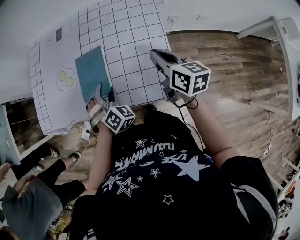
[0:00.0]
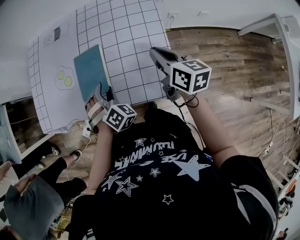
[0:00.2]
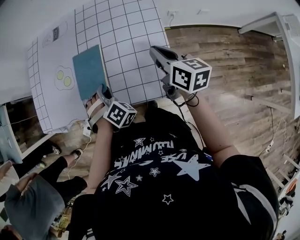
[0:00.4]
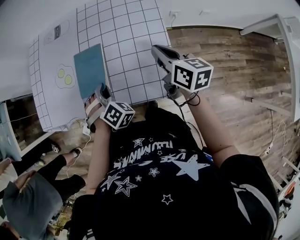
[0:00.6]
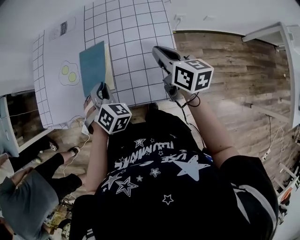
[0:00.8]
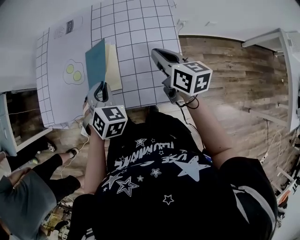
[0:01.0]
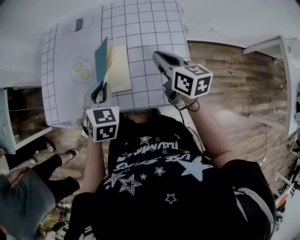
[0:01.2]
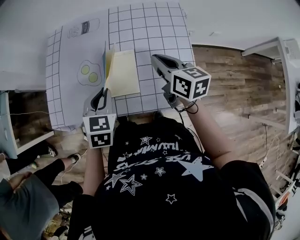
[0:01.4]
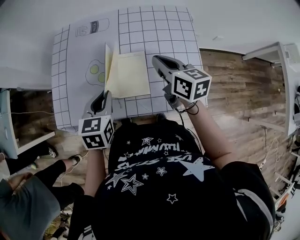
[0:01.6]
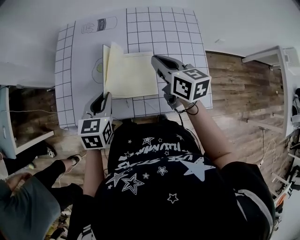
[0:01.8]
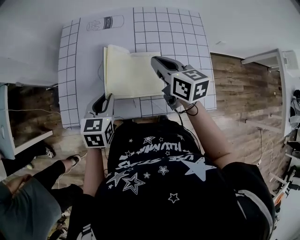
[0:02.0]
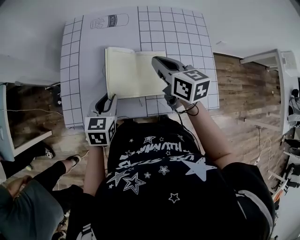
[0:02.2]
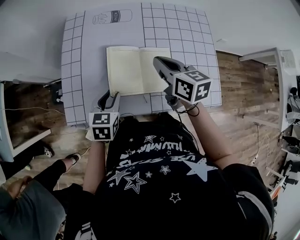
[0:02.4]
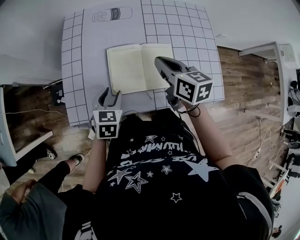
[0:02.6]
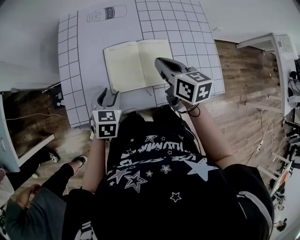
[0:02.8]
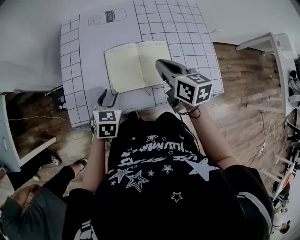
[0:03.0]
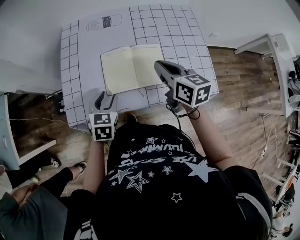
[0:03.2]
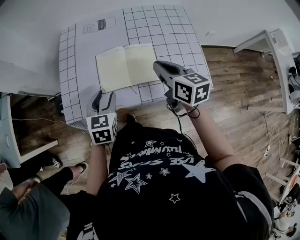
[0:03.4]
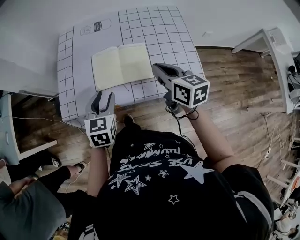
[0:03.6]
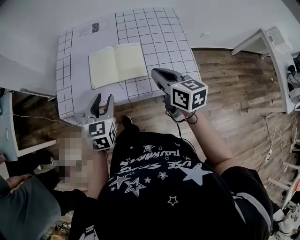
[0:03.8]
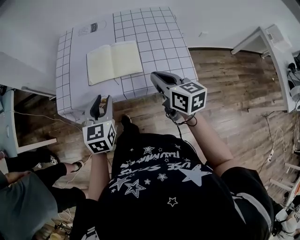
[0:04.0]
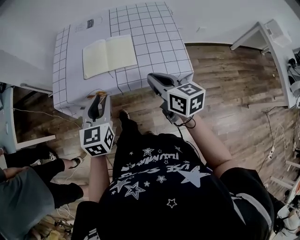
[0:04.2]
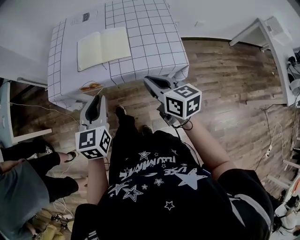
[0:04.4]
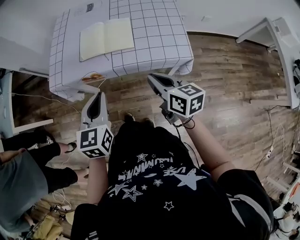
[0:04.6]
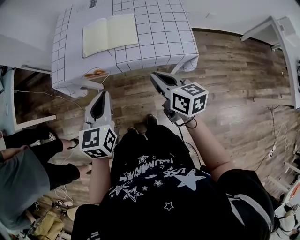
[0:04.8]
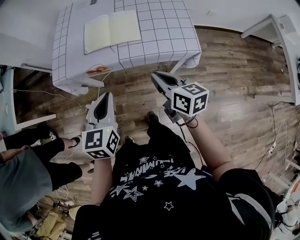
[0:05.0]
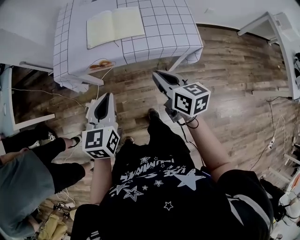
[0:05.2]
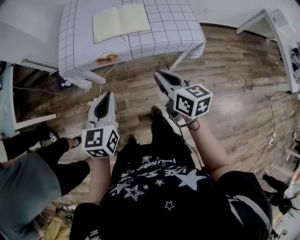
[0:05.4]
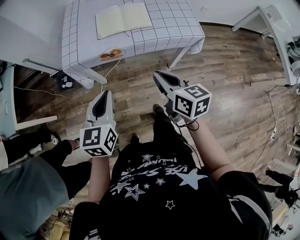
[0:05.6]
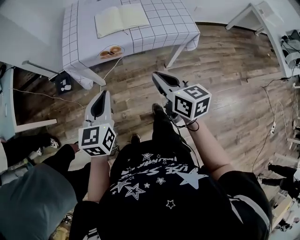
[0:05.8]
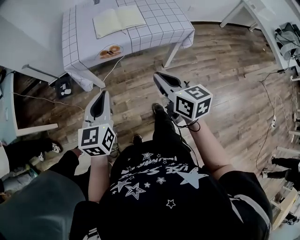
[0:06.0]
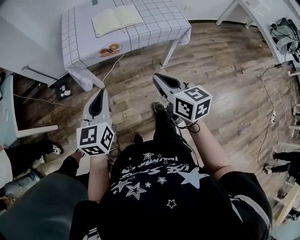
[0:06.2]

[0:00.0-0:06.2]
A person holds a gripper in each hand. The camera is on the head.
0:00.0 to 0:01.6: The left gripper shifts some 20 cm to the left, upward and forward, rolls counterclockwise, seen from behind, by approximately 50 degrees, and closes its fingers, while the right gripper shifts approximately 15 cm to the left and forward.
0:01.6 to 0:03.2: The left gripper is displaced to the left and downward by roughly 15 cm, and opens its fingers. The right gripper shifts approximately 10 cm to the left and backward.
0:03.2 to 0:04.6: The left gripper is displaced backward, upward and to the right by about 30 cm, changes its angle by some 20 degrees, and closes its fingers. Meanwhile the right gripper moves backward, approximately 25 cm.
0:04.6 to 0:06.2: The right gripper moves backward and to the left, approximately 25 cm; the left gripper is displaced to the left and backward by roughly 25 cm.

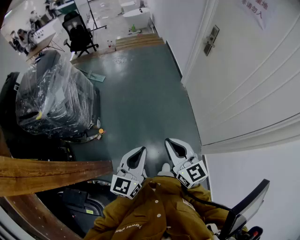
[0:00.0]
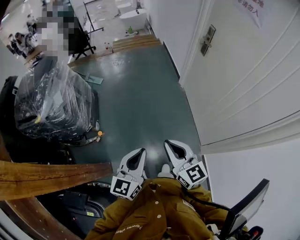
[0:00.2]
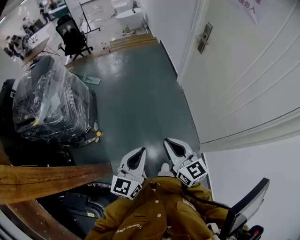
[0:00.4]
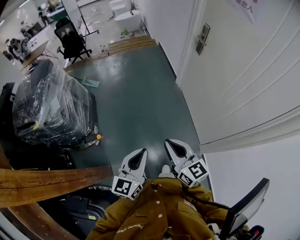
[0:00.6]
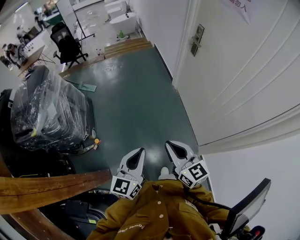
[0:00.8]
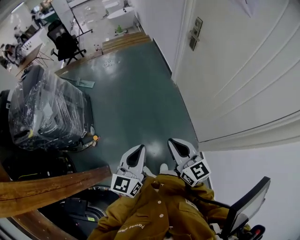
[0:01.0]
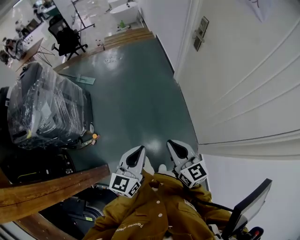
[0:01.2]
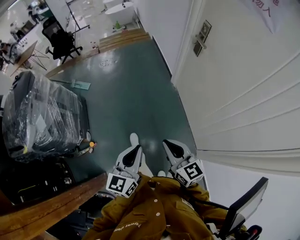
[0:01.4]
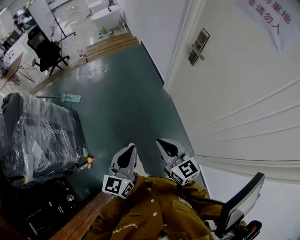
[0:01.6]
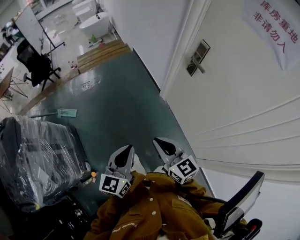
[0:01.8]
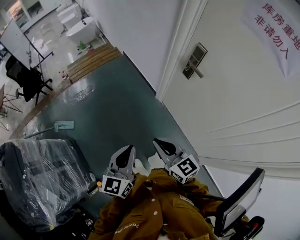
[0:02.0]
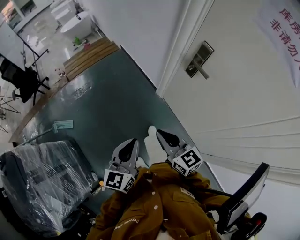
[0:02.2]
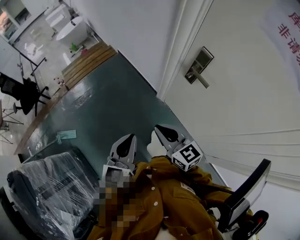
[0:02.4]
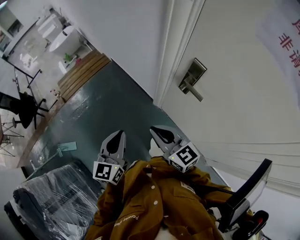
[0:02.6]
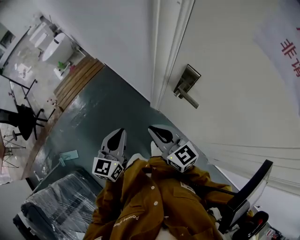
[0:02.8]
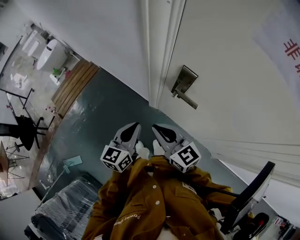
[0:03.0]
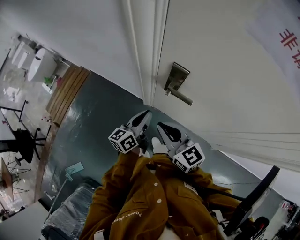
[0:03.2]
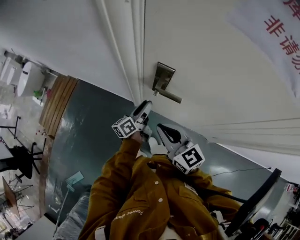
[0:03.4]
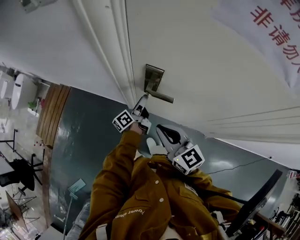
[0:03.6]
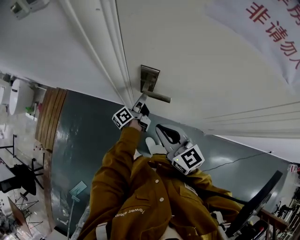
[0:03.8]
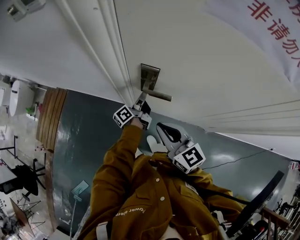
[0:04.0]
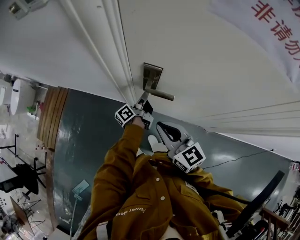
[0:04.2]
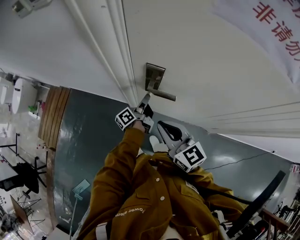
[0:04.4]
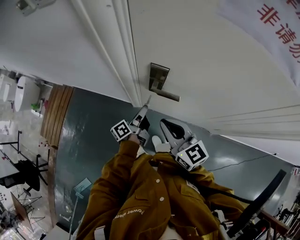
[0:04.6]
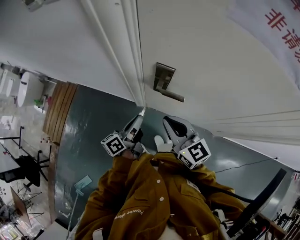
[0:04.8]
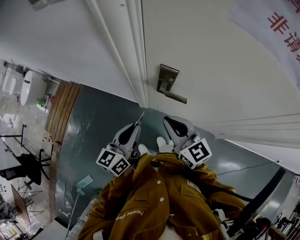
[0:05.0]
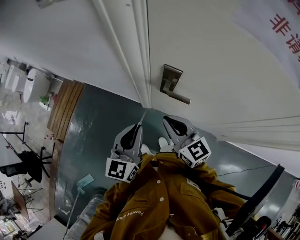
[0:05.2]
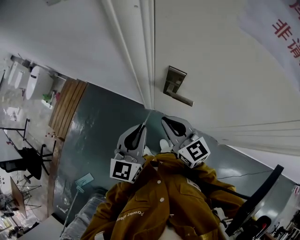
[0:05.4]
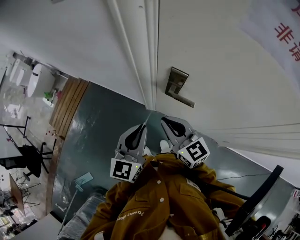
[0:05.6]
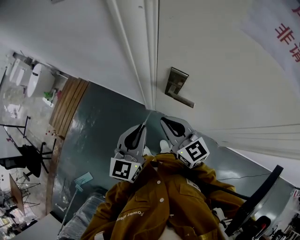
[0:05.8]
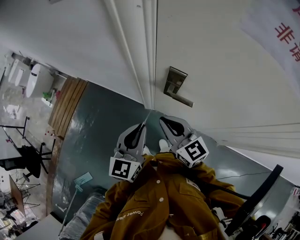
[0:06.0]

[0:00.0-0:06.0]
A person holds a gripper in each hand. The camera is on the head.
0:00.0 to 0:01.6: The two grippers go approximately 30 cm forward.
0:01.6 to 0:03.0: The pair of grippers is taken about 50 cm. The right gripper swivels about 20 degrees; the left gripper swivels approximately 40 degrees.
0:03.0 to 0:04.4: The right gripper shifts approximately 10 cm to the right, and changes its angle by about 20 degrees. The left gripper goes roughly 25 cm forward, to the right and downward, twists about 60 degrees counterclockwise, seen from behind, and opens and closes again.
0:04.4 to 0:06.0: The right gripper shifts by approximately 5 cm. The left gripper travels upward, backward and to the left by approximately 25 cm, and twists approximately 80 degrees clockwise, seen from behind.

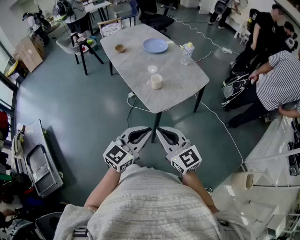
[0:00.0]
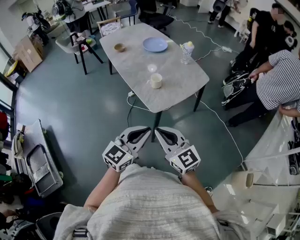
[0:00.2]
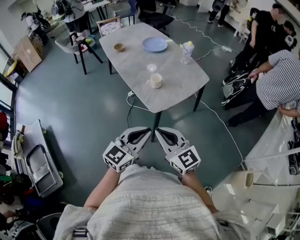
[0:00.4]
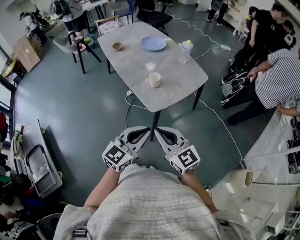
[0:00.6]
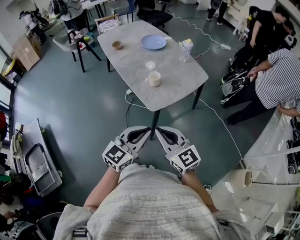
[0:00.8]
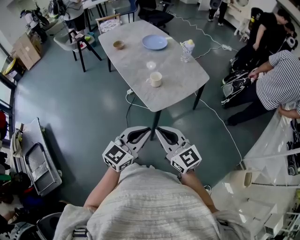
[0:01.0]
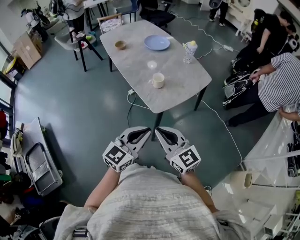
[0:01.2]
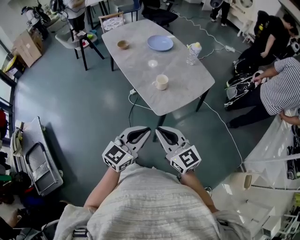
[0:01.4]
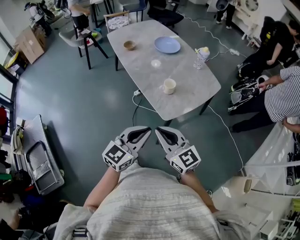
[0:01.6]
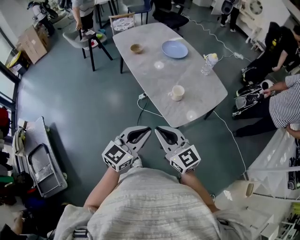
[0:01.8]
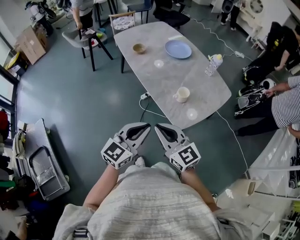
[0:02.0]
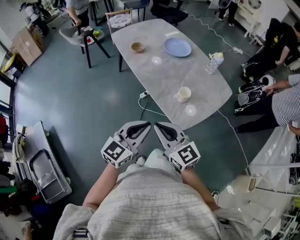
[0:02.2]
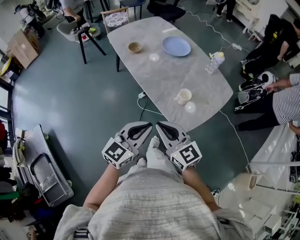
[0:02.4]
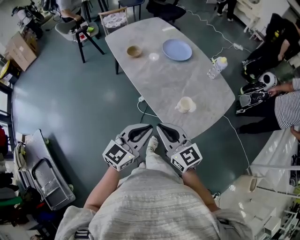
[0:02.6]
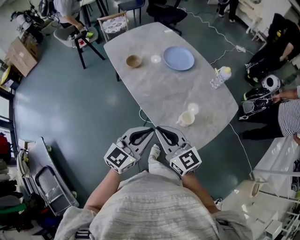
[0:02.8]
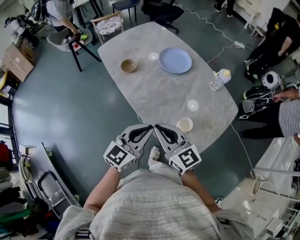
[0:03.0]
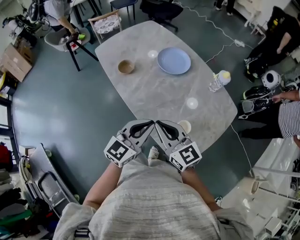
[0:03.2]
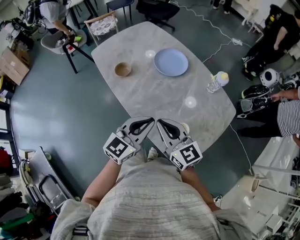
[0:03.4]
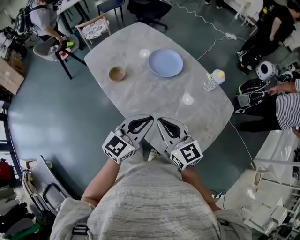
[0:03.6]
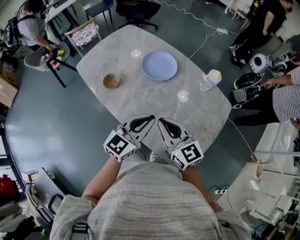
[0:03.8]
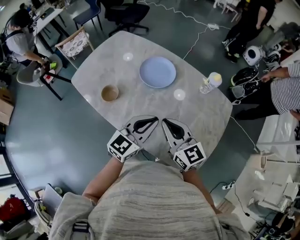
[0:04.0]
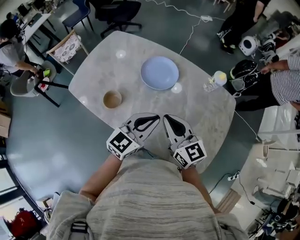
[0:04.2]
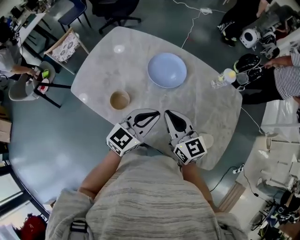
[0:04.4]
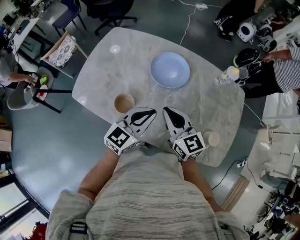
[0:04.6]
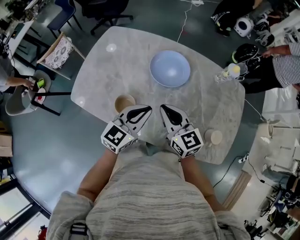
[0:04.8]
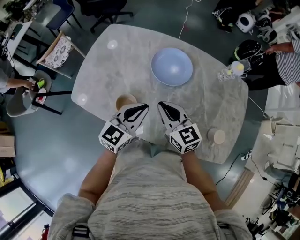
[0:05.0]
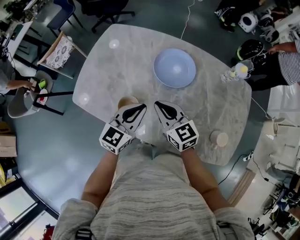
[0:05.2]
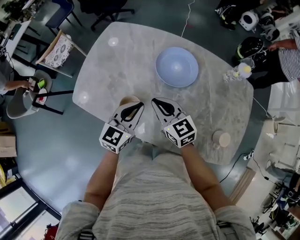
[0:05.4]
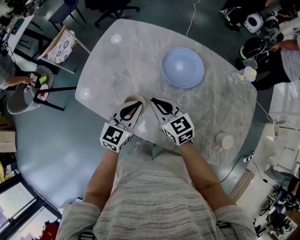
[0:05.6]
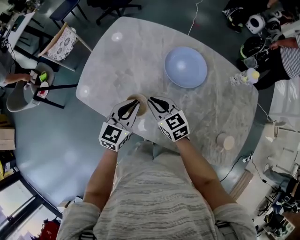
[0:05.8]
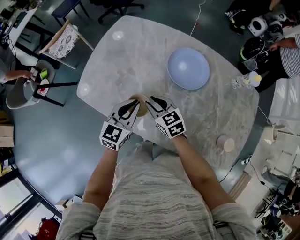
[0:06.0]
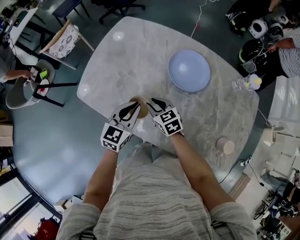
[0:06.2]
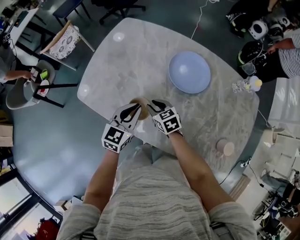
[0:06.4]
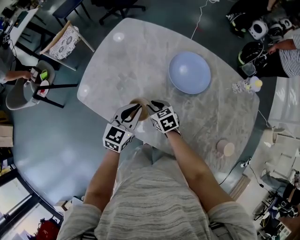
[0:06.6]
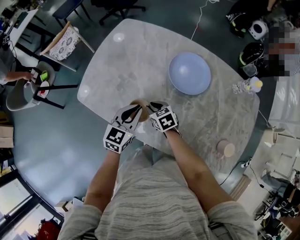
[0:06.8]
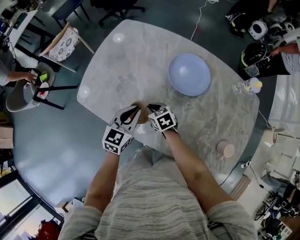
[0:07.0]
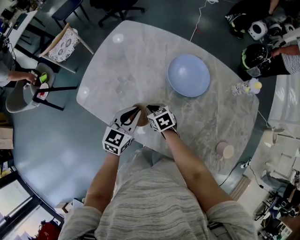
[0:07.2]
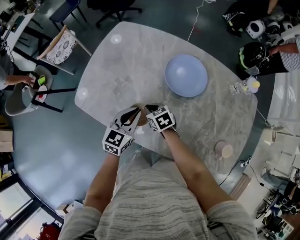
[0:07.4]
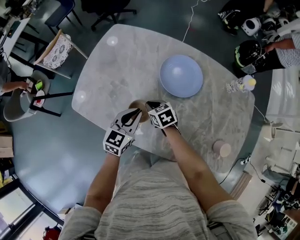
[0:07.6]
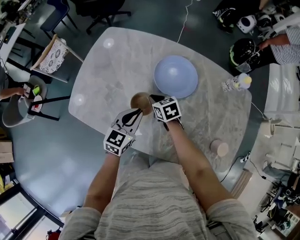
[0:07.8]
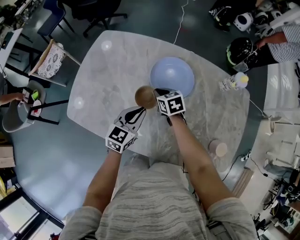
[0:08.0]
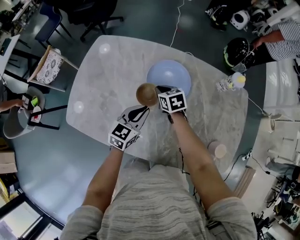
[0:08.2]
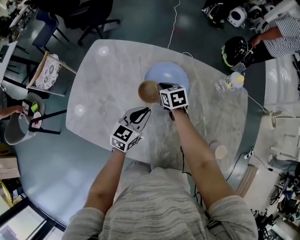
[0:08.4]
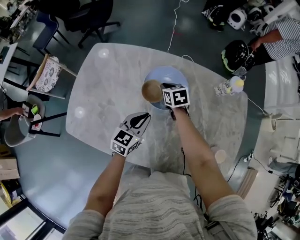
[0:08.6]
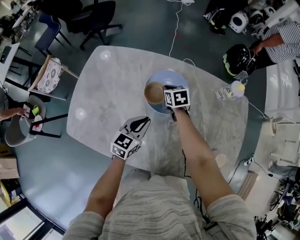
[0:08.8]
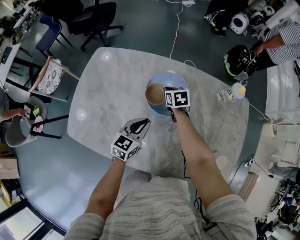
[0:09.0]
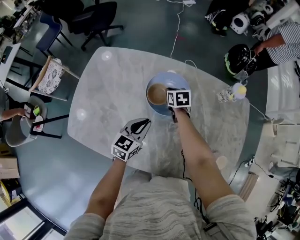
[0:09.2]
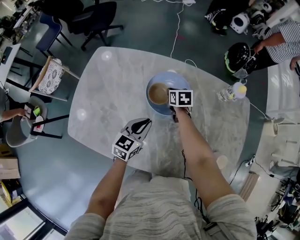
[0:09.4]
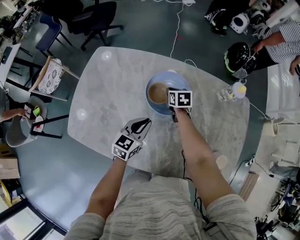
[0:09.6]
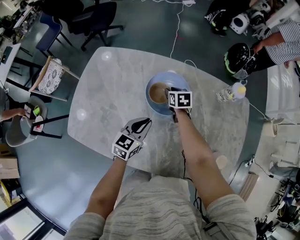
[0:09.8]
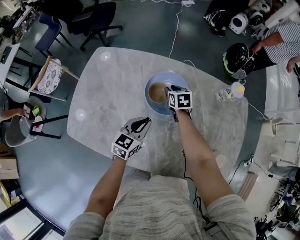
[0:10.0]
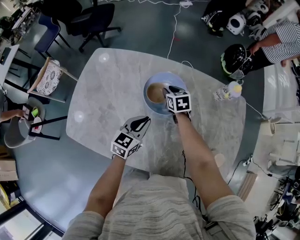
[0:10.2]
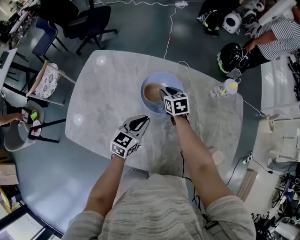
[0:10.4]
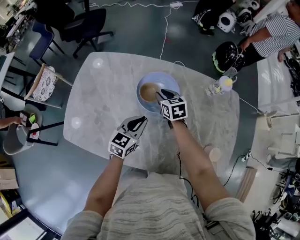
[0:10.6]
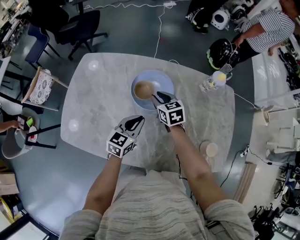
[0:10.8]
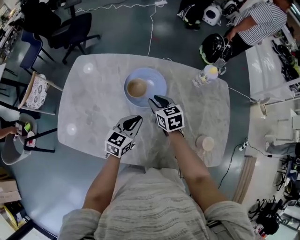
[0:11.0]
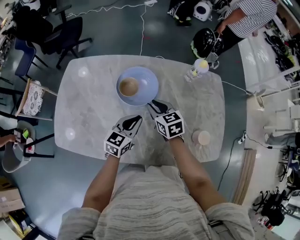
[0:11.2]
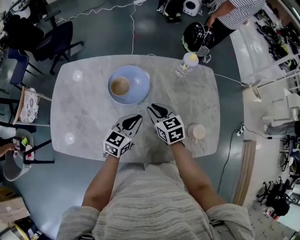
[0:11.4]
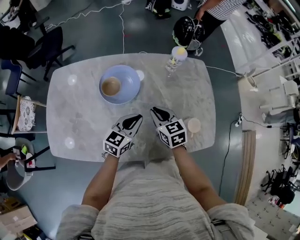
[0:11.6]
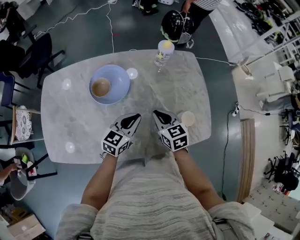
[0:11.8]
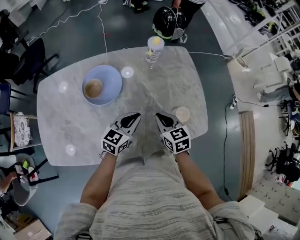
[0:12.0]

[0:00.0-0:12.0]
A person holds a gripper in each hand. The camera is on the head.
0:00.0 to 0:01.6: The grippers both shift to the left and forward by some 10 cm.
0:01.6 to 0:03.0: Both grippers travel together forward, approximately 35 cm.
0:03.0 to 0:04.4: The right gripper changes place by roughly 30 cm, and swivels approximately 30 degrees; the left gripper shifts by about 30 cm, and turns by approximately 30 degrees.
0:04.4 to 0:06.0: The grippers both shift to the left, downward and forward by roughly 25 cm. The right gripper swivels roughly 30 degrees, and opens.
0:06.0 to 0:07.6: The right gripper shifts roughly 5 cm downward, and closes.
0:07.6 to 0:09.0: The left gripper heads to the right and forward, covering about 10 cm, while the right gripper moves forward and to the right, approximately 25 cm, and rotates about 30 degrees.
0:09.0 to 0:10.4: The right gripper opens up.
0:10.4 to 0:12.0: The left gripper moves to the right, roughly 20 cm, and changes its angle by about 30 degrees. Meanwhile the right gripper travels to the right and backward by about 35 cm, changes its angle by approximately 20 degrees, and closes its fingers.
